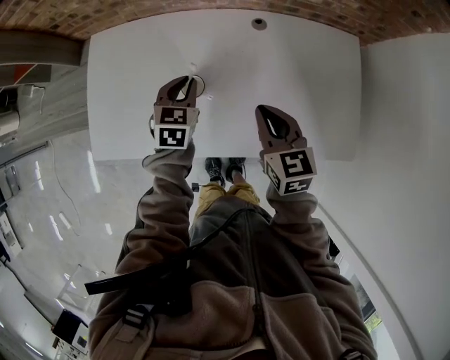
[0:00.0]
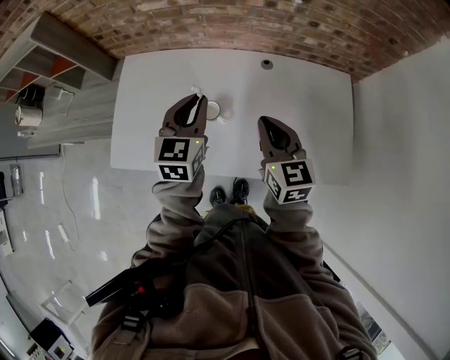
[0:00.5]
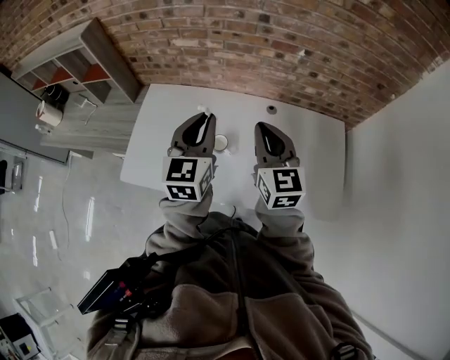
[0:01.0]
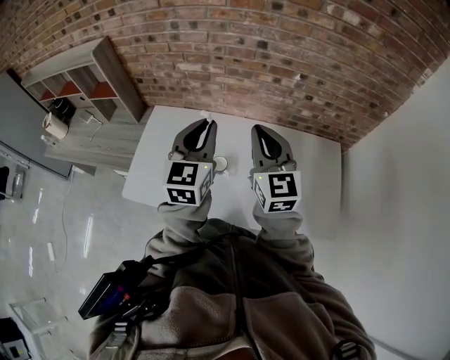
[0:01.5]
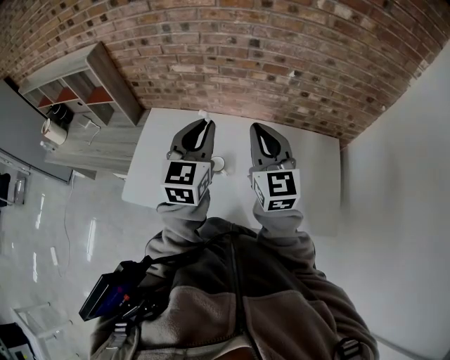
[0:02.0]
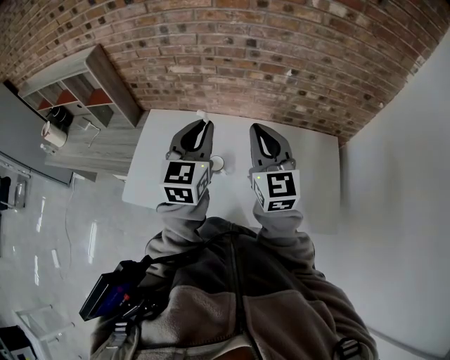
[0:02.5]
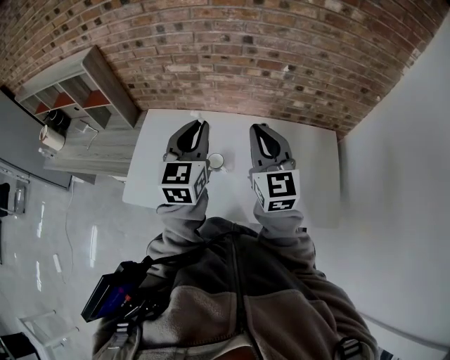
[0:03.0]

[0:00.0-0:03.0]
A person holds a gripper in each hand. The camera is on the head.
0.0 to 1.5 s: The two grippers go about 30 cm upward. The left gripper tips its fingers upward by about 40 degrees. Meanwhile the right gripper tips its fingers upward by approximately 30 degrees.
1.5 to 3.0 s: The grippers stay close to where they were, moving slightly.

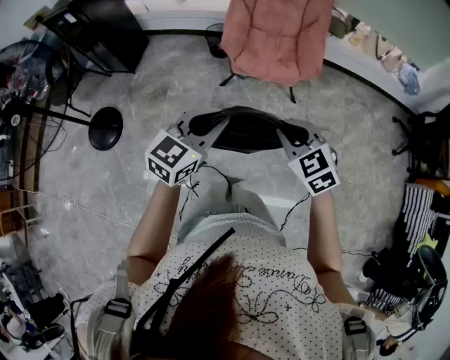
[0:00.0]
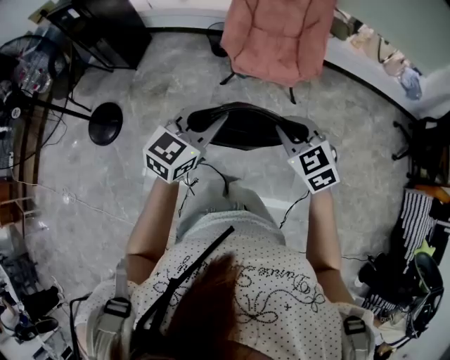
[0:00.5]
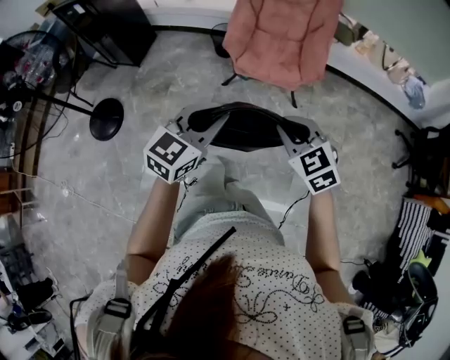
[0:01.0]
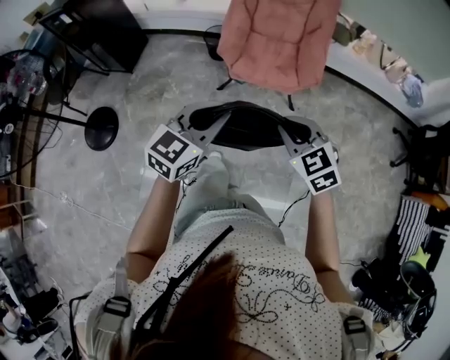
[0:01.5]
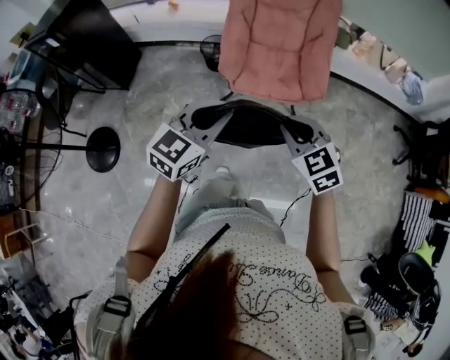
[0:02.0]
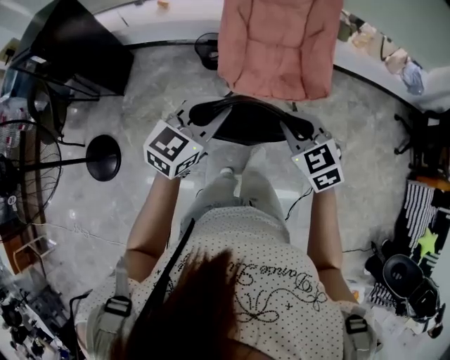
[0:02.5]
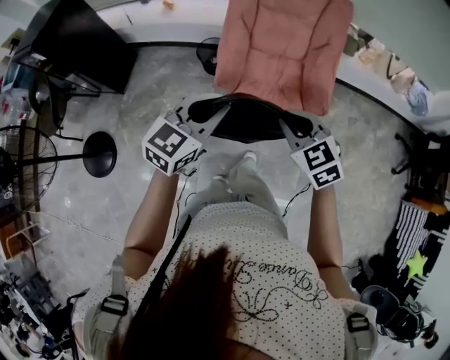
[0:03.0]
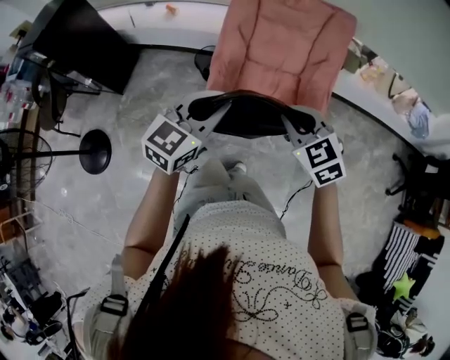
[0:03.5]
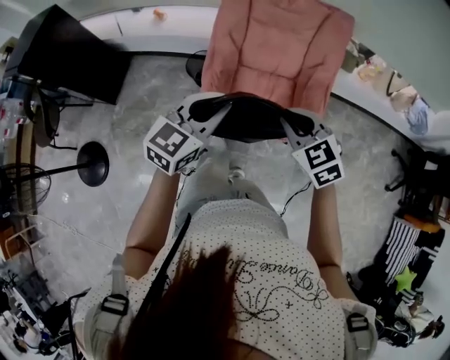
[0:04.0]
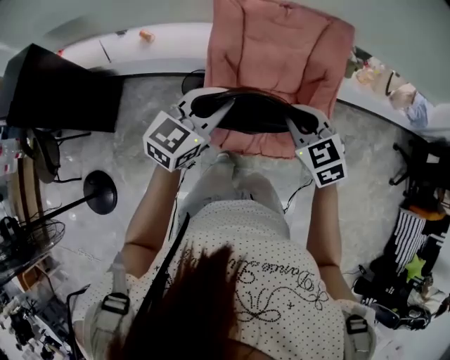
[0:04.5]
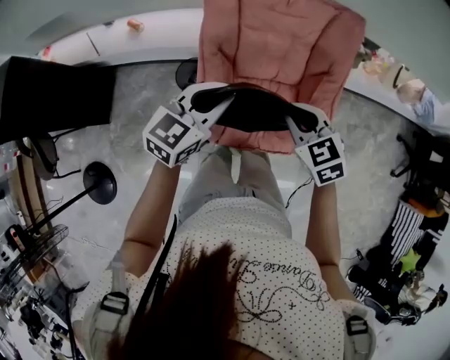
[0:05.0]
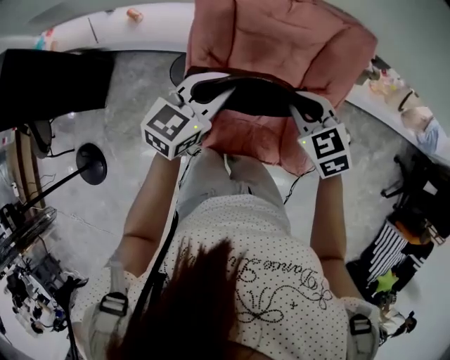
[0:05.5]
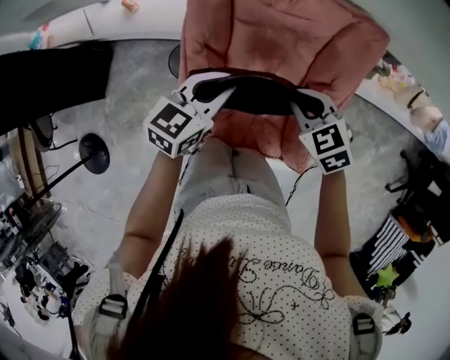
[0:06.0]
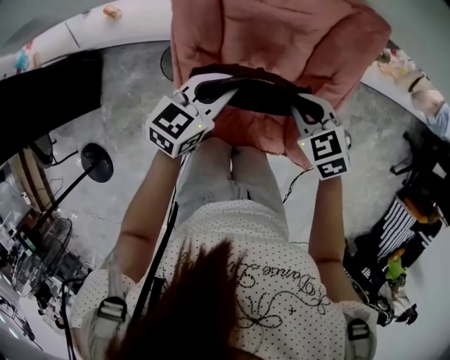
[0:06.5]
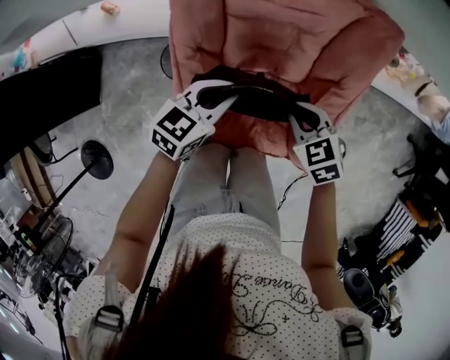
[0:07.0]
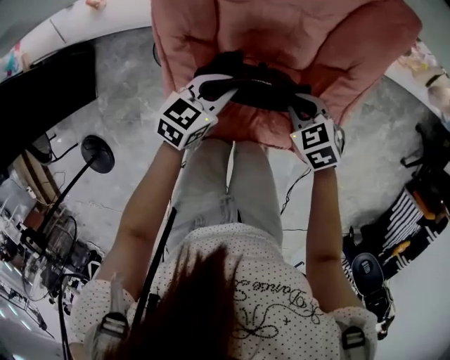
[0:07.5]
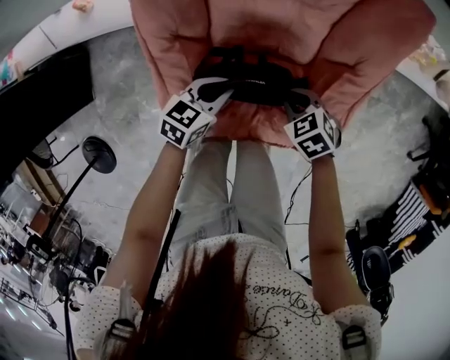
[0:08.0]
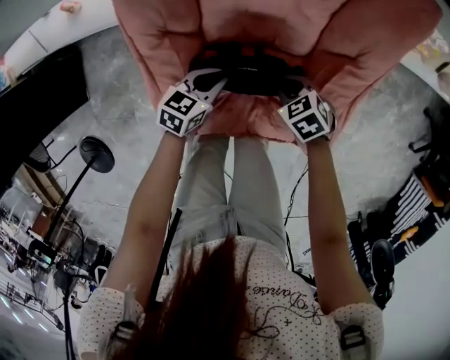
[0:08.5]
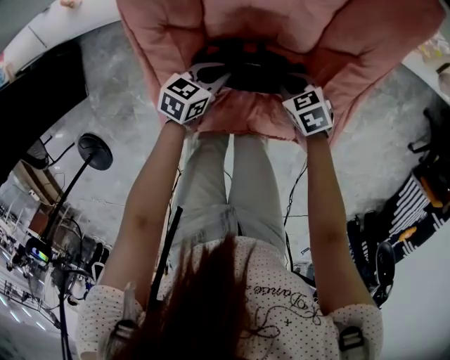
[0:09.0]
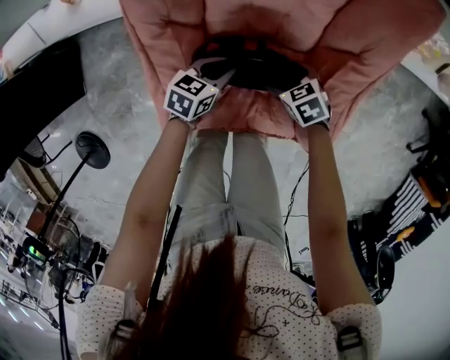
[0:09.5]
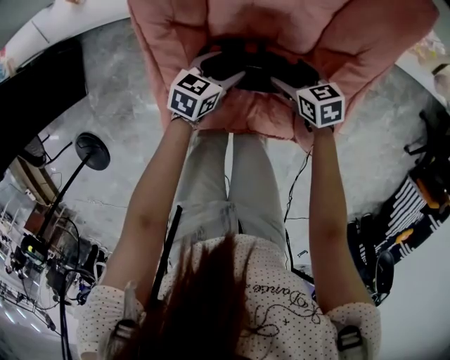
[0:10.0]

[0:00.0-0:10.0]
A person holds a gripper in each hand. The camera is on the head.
0.0 to 2.0 s: Both grippers travel together forward, roughly 20 cm.
2.0 to 4.0 s: The two grippers go roughly 30 cm forward.
4.0 to 6.0 s: Both grippers move forward, some 30 cm.
6.0 to 8.0 s: Both grippers travel together downward, roughly 25 cm. The right gripper rotates about 20 degrees, while the left gripper changes its angle by some 20 degrees.
8.0 to 10.0 s: The right gripper swivels roughly 30 degrees, and opens its fingers; the left gripper heads downward, covering roughly 5 cm, and opens up.

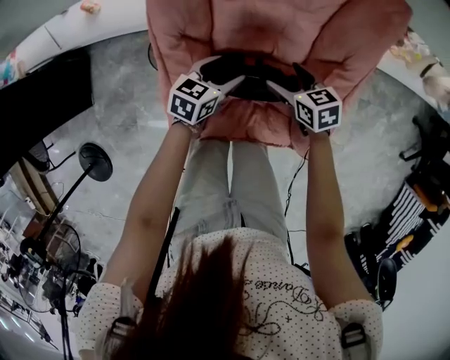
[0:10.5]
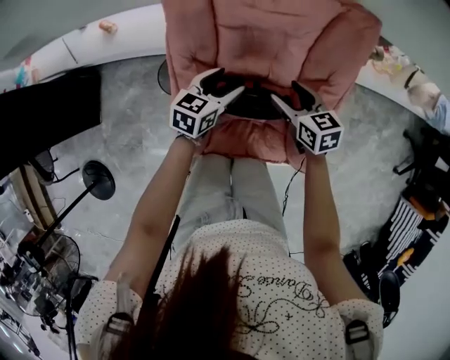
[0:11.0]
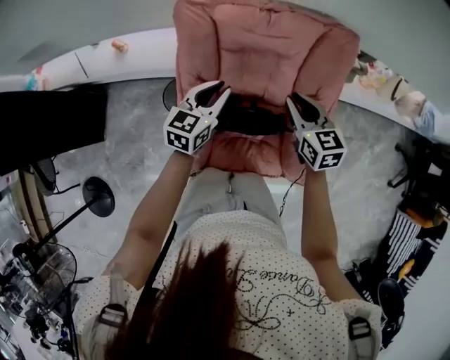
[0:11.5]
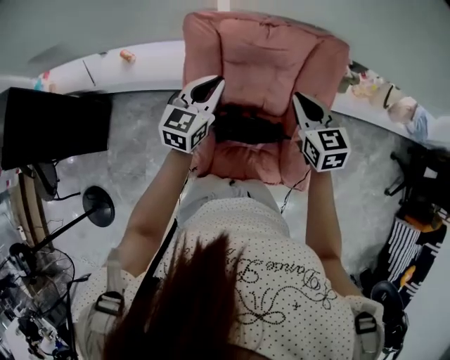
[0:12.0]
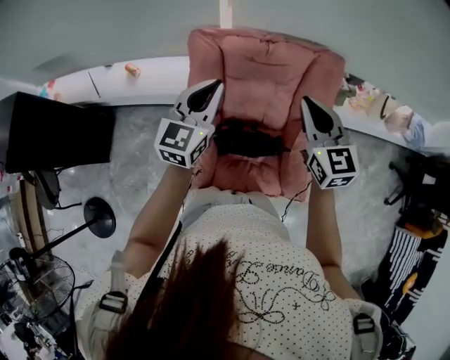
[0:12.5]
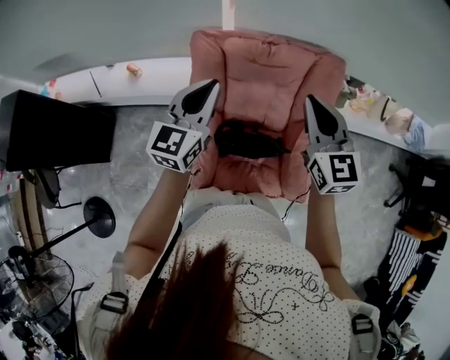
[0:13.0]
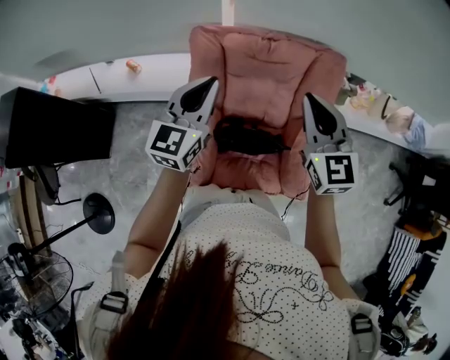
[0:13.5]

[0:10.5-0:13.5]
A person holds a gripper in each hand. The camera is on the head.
10.5 to 12.0 s: The grippers both shift upward by roughly 25 cm. The right gripper changes its angle by some 30 degrees, and closes, while the left gripper turns by approximately 30 degrees, and closes its fingers.
12.0 to 13.5 s: The grippers both shift upward by roughly 10 cm. The right gripper swivels about 20 degrees.

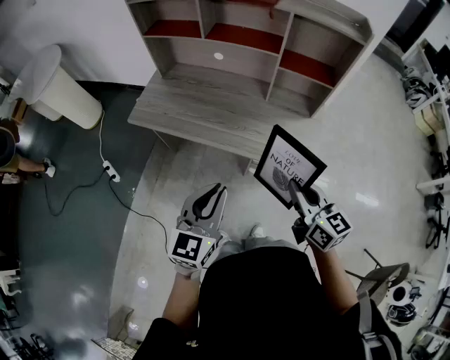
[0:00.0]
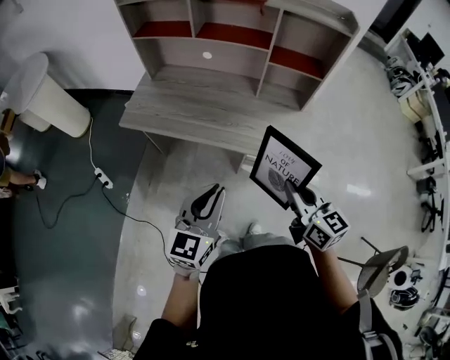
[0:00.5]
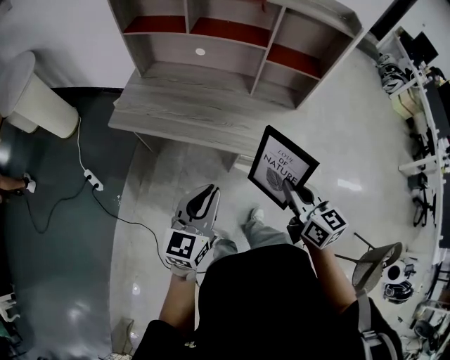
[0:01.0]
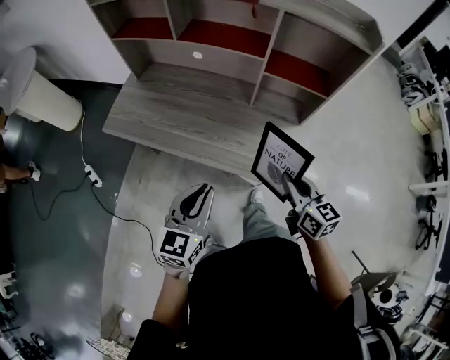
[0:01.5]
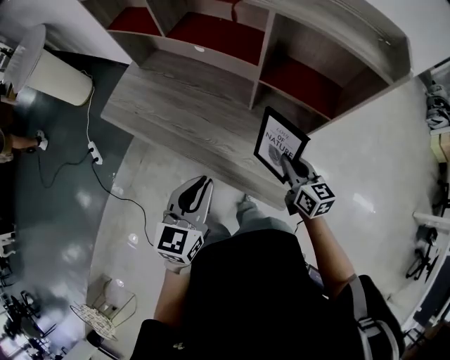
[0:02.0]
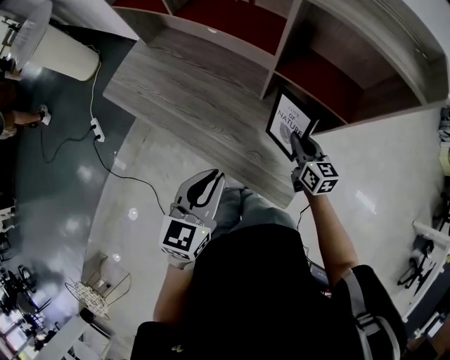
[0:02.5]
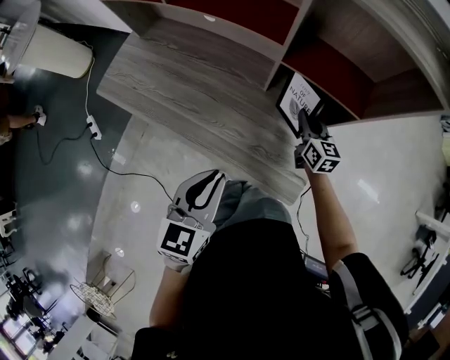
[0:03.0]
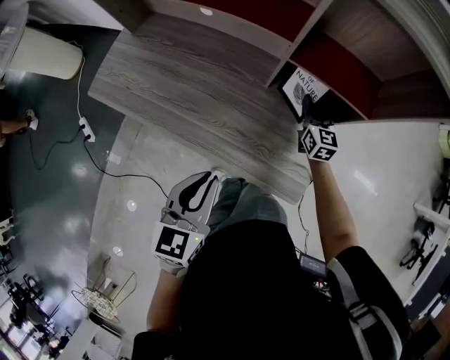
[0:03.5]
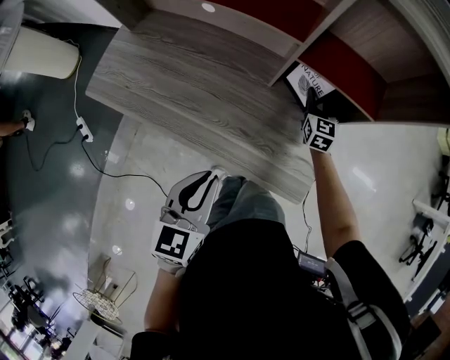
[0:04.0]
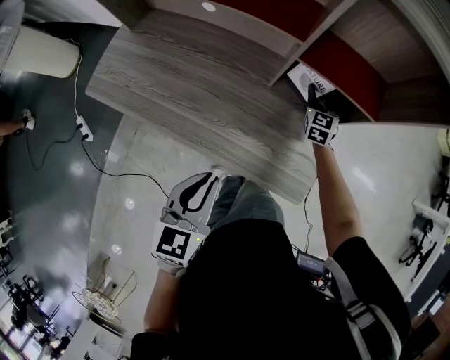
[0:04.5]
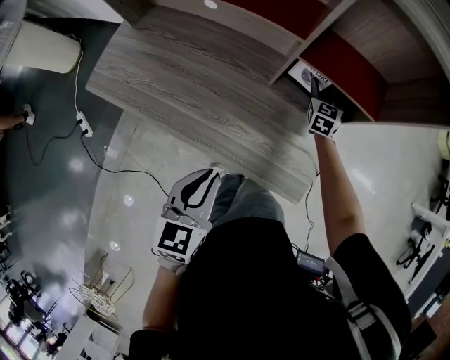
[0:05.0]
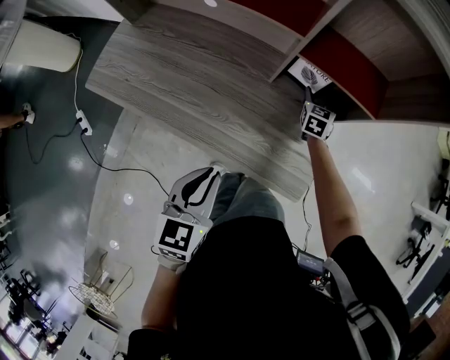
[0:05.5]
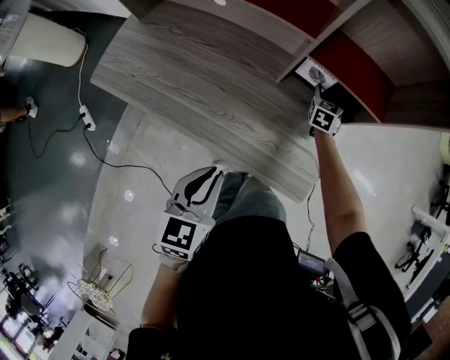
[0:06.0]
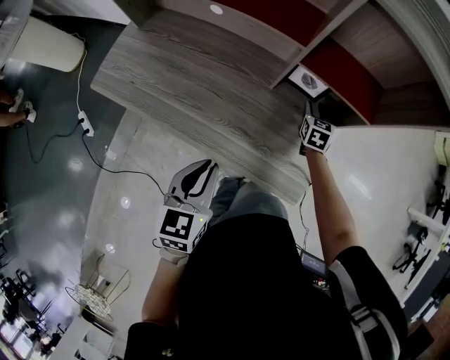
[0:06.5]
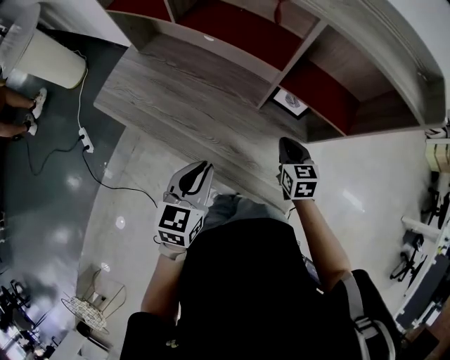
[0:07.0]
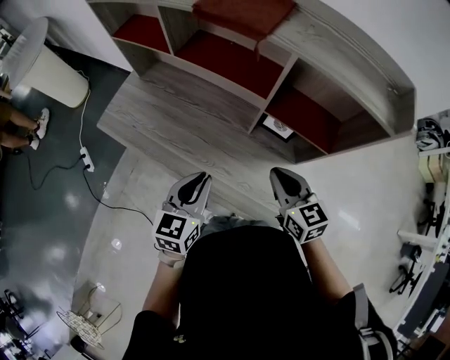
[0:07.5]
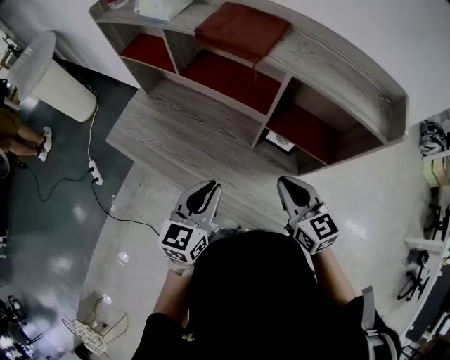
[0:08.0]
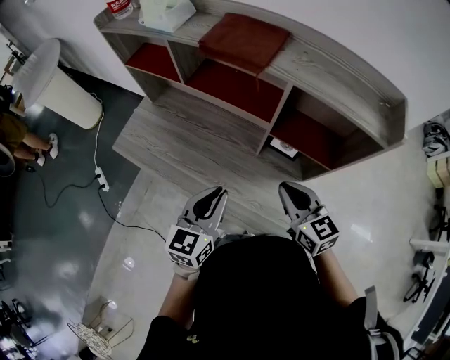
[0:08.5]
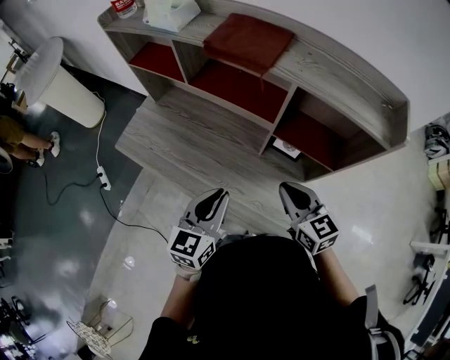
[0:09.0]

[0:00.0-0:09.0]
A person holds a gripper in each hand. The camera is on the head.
0.0 to 2.0 s: The right gripper travels forward, to the right and downward by about 35 cm. The left gripper shifts about 25 cm forward and to the right.
2.0 to 4.5 s: The left gripper shifts approximately 10 cm downward. Meanwhile the right gripper moves forward and downward, some 25 cm, turns by some 50 degrees, and opens.
4.5 to 7.0 s: The right gripper shifts roughly 20 cm backward and upward, swivels about 30 degrees, and closes up.
7.0 to 9.0 s: The right gripper is displaced upward by about 20 cm, and turns by about 20 degrees. Meanwhile the left gripper is displaced upward by approximately 10 cm.

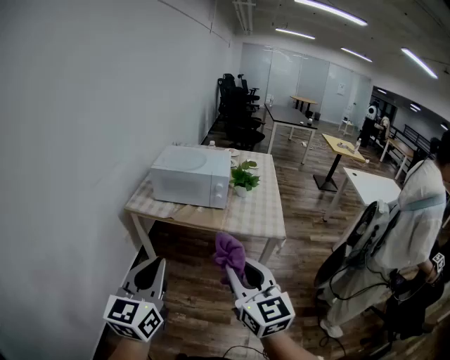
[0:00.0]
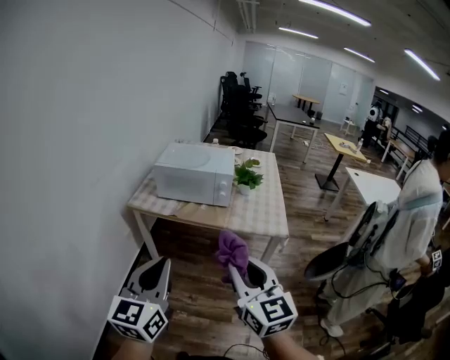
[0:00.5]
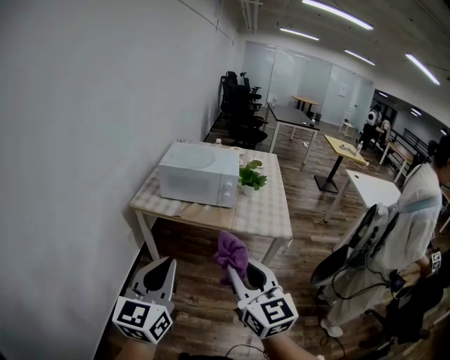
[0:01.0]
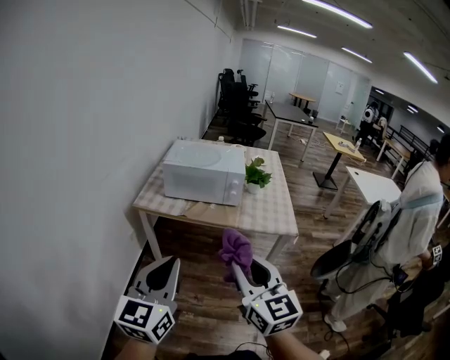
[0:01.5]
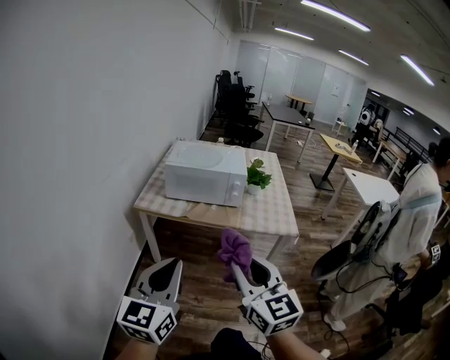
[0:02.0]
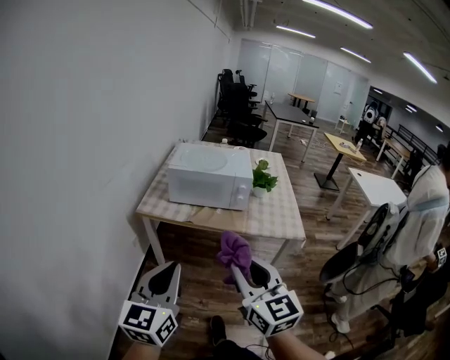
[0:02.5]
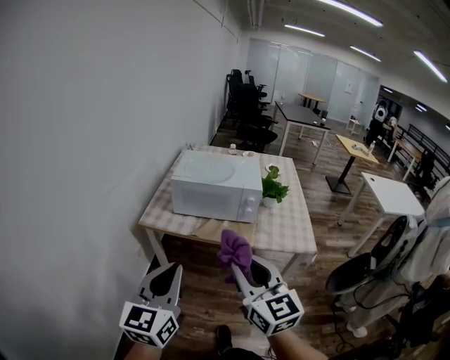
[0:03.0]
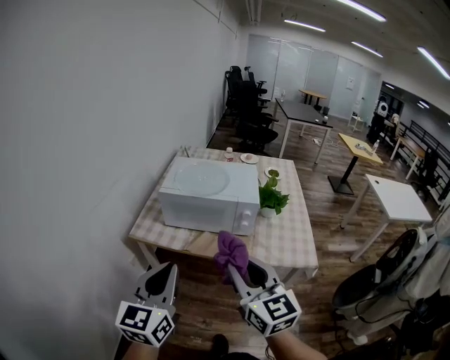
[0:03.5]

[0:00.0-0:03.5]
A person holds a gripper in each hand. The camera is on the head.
0.0 to 2.0 s: Both grippers move to the left, about 10 cm.
2.0 to 3.5 s: The two grippers go some 25 cm forward.
